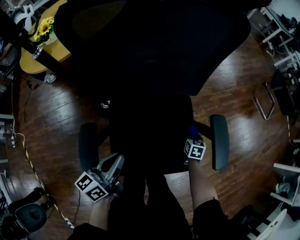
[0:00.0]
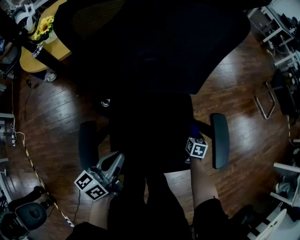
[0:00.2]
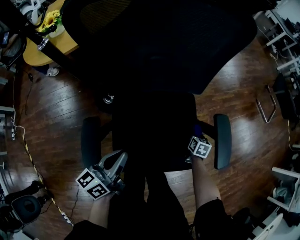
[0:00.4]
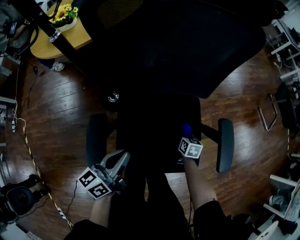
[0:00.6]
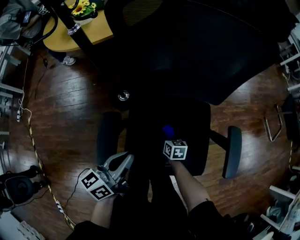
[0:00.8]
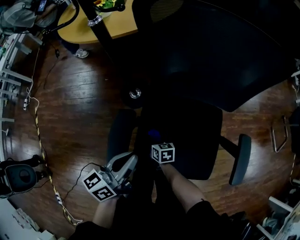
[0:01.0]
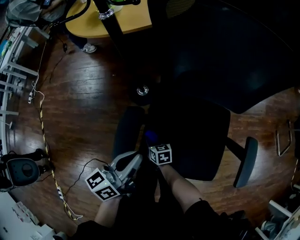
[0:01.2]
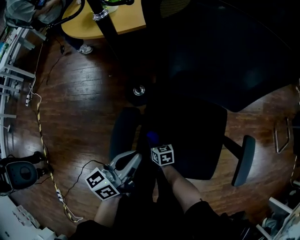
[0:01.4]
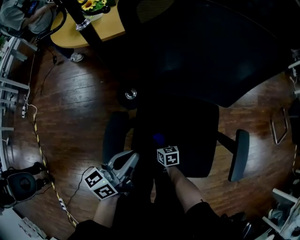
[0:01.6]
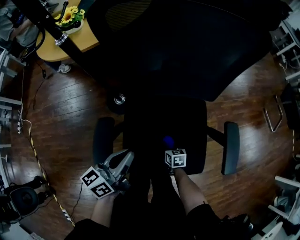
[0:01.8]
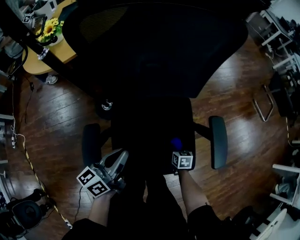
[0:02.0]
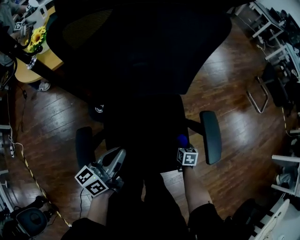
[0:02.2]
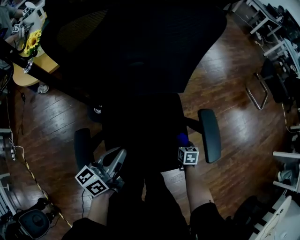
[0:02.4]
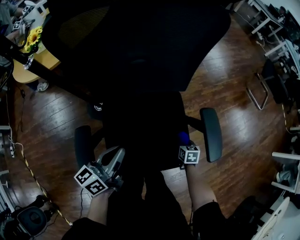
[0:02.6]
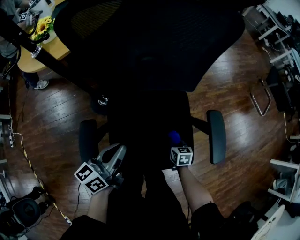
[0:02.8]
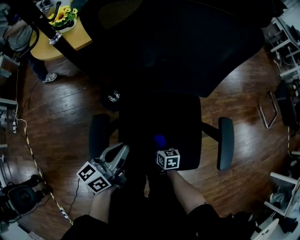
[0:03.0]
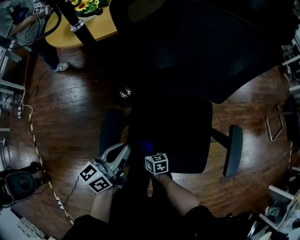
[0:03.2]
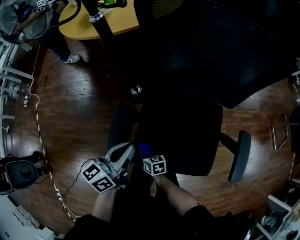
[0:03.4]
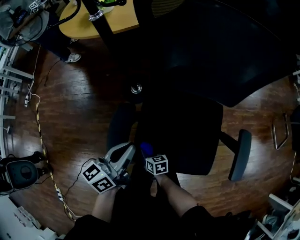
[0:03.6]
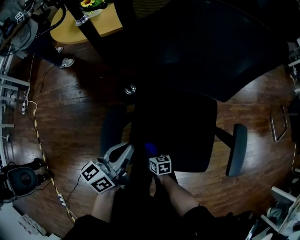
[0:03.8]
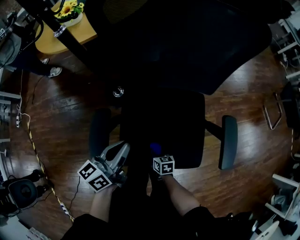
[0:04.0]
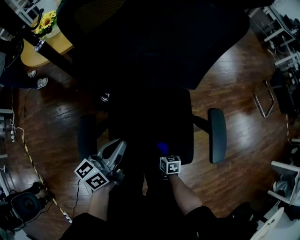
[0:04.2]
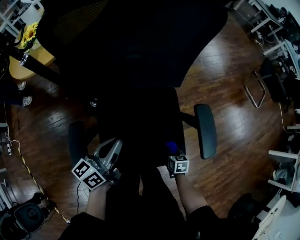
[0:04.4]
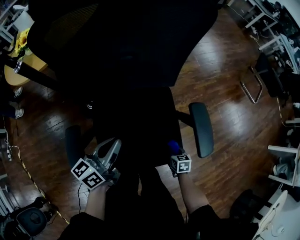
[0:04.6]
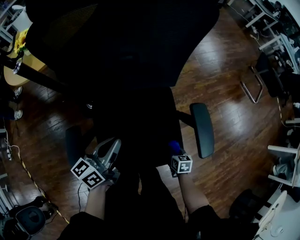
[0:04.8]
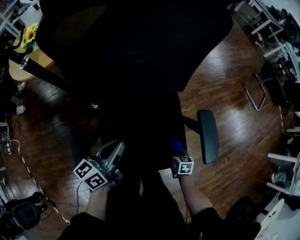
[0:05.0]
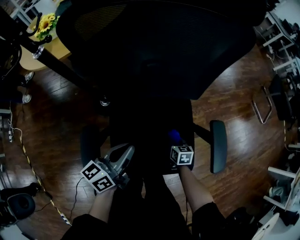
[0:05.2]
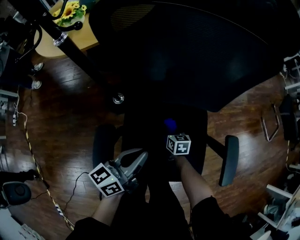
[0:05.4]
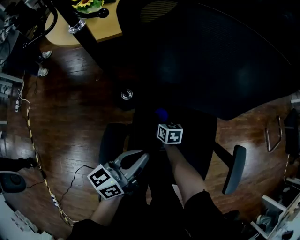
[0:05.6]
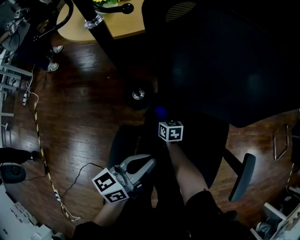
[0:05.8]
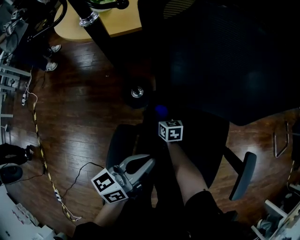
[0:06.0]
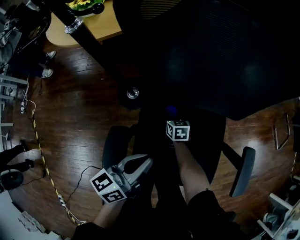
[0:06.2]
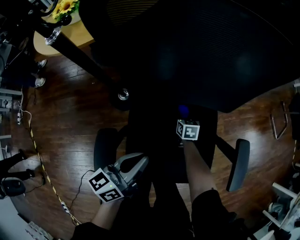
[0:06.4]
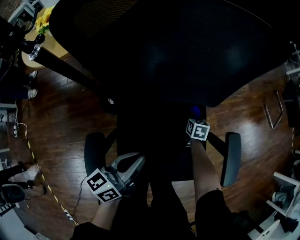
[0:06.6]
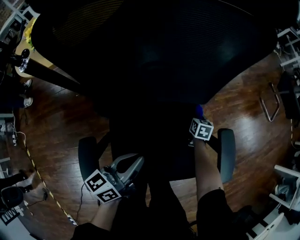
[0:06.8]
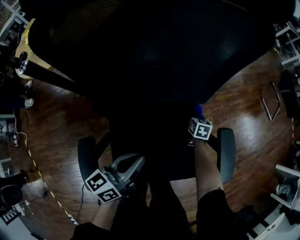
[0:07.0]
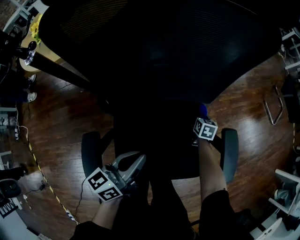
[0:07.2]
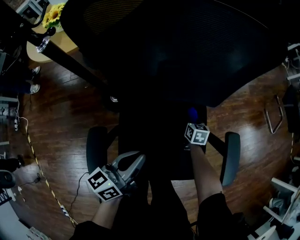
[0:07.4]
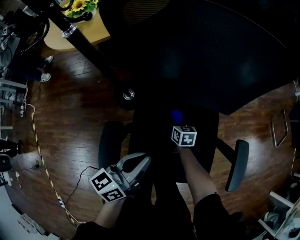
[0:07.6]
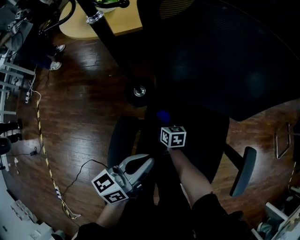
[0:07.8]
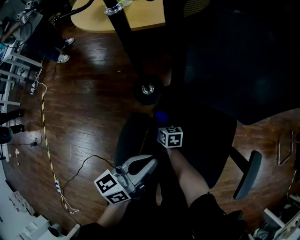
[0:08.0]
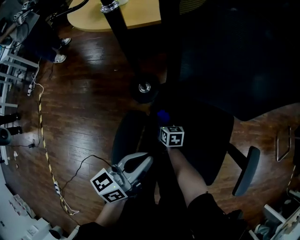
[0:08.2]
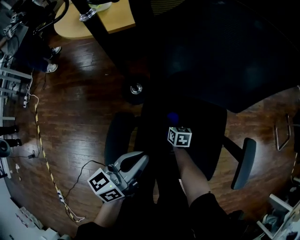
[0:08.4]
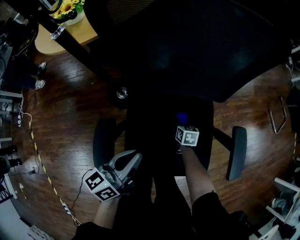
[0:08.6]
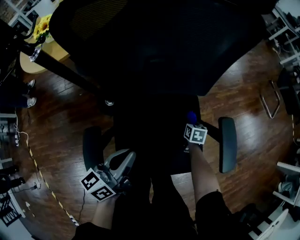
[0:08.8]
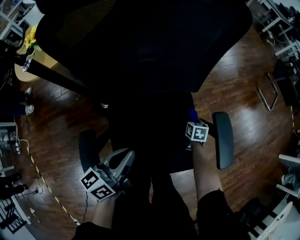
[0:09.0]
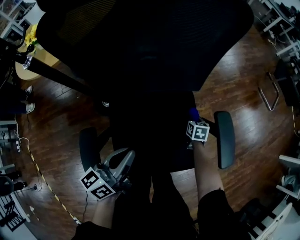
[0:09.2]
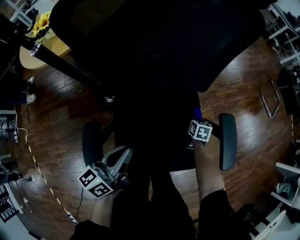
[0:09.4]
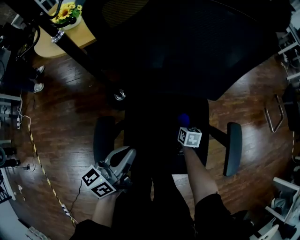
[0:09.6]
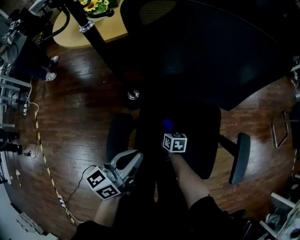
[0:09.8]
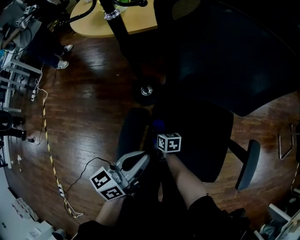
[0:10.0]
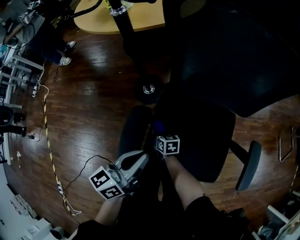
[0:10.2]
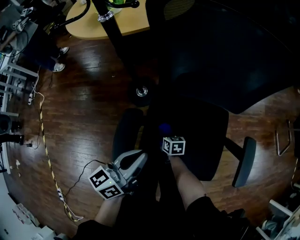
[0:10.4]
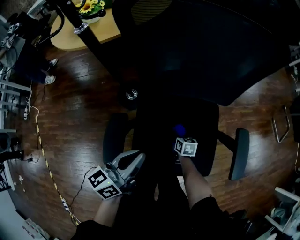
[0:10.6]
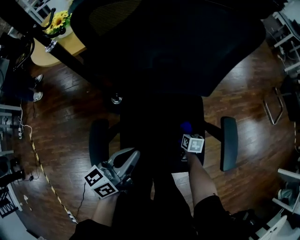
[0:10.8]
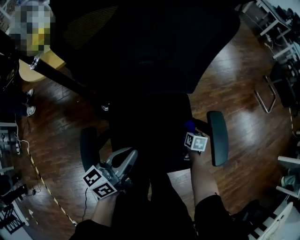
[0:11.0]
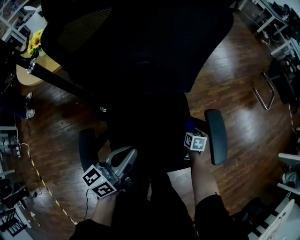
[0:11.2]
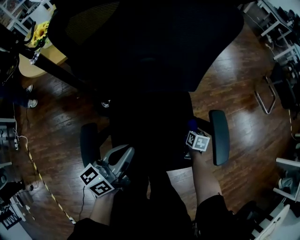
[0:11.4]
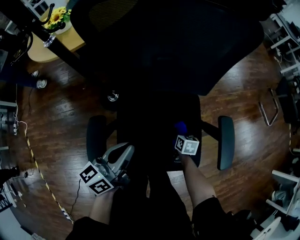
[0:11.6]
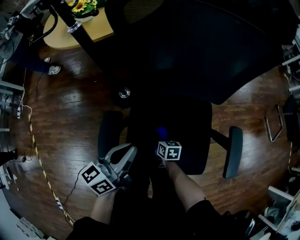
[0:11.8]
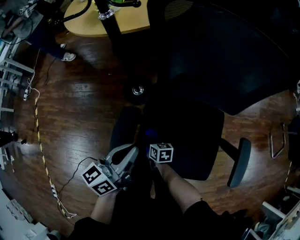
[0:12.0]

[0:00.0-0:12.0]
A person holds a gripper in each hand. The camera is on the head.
0:00.0 to 0:01.6: The right gripper moves roughly 35 cm, and rotates roughly 40 degrees.
0:03.0 to 0:04.4: The left gripper moves approximately 5 cm. Meanwhile the right gripper ends up approximately 15 cm from where it was.
0:04.4 to 0:06.0: The right gripper travels to the left and forward by approximately 40 cm, and swivels approximately 30 degrees, while the left gripper is displaced to the left by about 10 cm.
0:07.6 to 0:09.0: The right gripper shifts by some 25 cm, and rotates approximately 30 degrees.
0:09.0 to 0:10.4: The right gripper changes place by some 35 cm, and swivels roughly 30 degrees, while the left gripper changes place by about 10 cm.

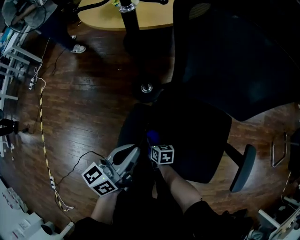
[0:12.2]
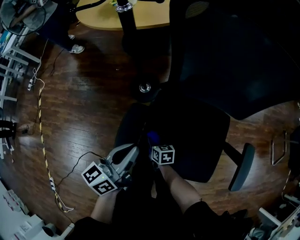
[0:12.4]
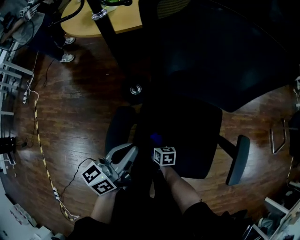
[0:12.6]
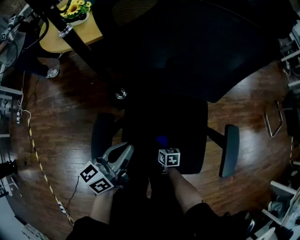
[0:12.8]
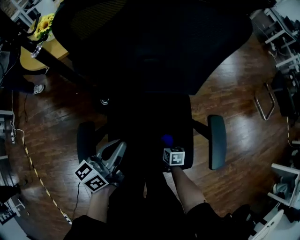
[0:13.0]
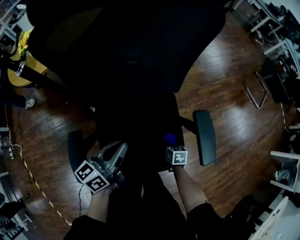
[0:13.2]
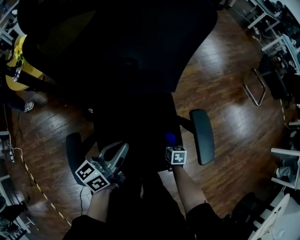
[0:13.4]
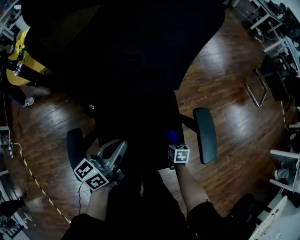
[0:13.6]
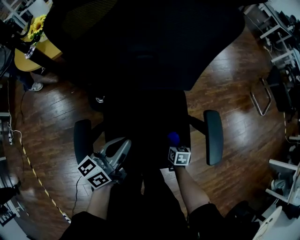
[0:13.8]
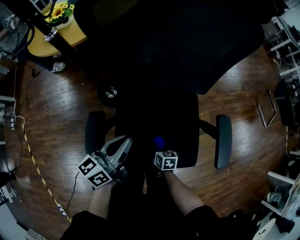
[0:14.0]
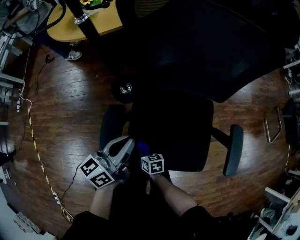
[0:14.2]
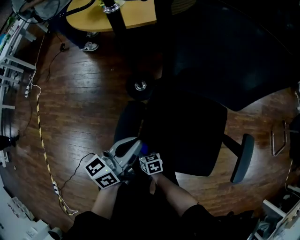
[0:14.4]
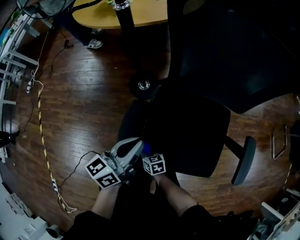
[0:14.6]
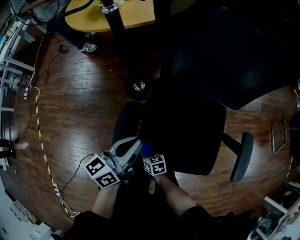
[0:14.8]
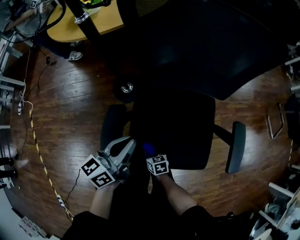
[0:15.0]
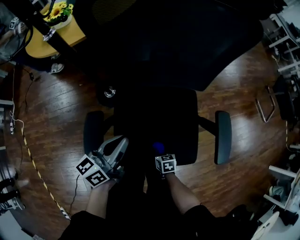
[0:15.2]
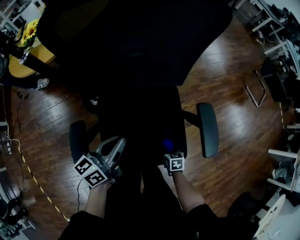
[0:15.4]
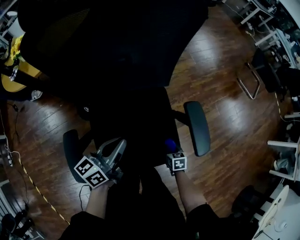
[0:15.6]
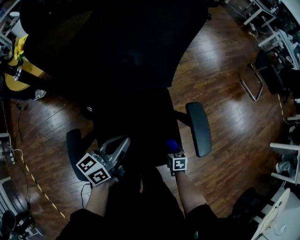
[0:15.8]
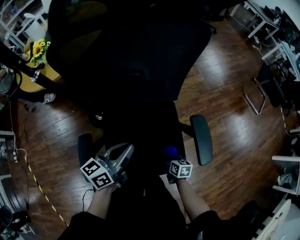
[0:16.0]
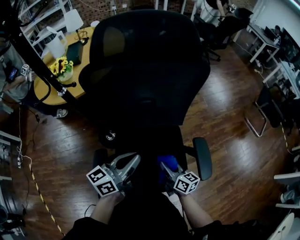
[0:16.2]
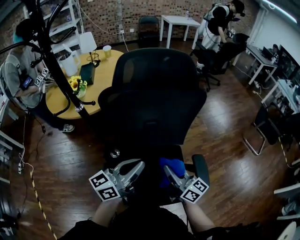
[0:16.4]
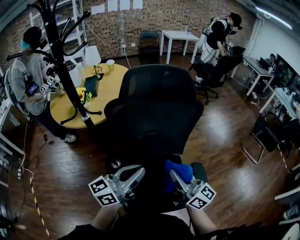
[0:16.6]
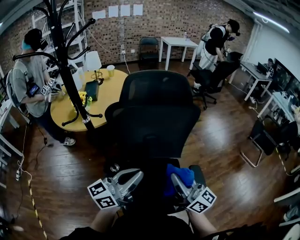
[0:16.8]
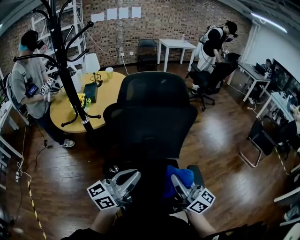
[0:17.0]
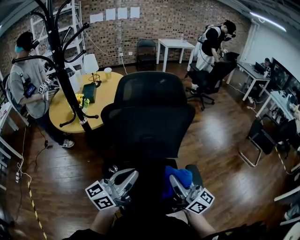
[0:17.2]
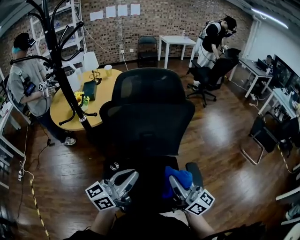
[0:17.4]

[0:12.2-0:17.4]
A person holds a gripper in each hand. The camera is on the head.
0:12.2 to 0:14.0: The right gripper turns by approximately 20 degrees.
0:14.0 to 0:15.6: The right gripper changes place by about 20 cm. Meanwhile the left gripper moves approximately 10 cm.
0:15.6 to 0:17.4: The left gripper is displaced upward by about 30 cm, and changes its angle by some 20 degrees, while the right gripper goes roughly 60 cm upward, and points its fingers approximately 80 degrees further upward.

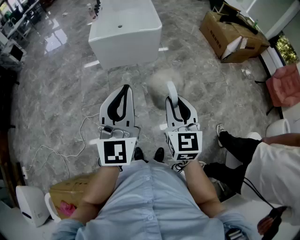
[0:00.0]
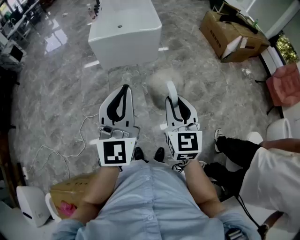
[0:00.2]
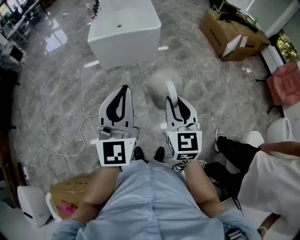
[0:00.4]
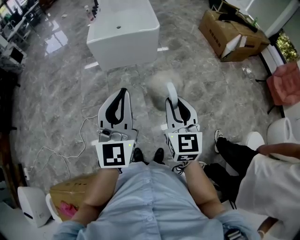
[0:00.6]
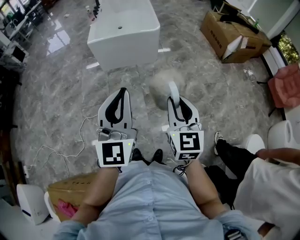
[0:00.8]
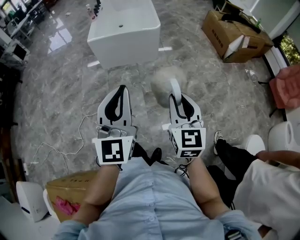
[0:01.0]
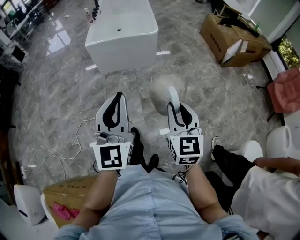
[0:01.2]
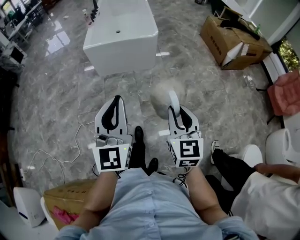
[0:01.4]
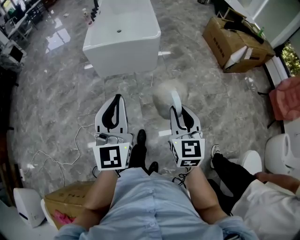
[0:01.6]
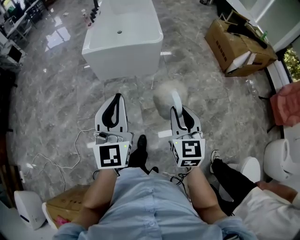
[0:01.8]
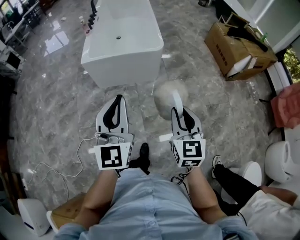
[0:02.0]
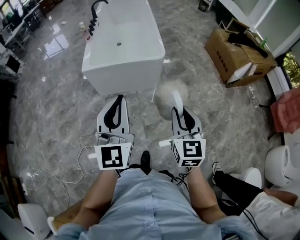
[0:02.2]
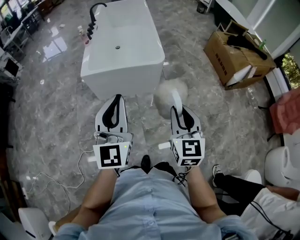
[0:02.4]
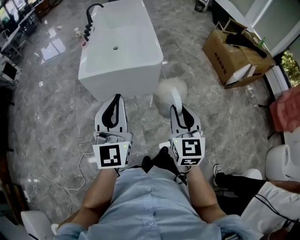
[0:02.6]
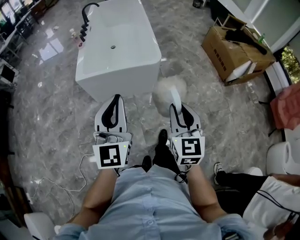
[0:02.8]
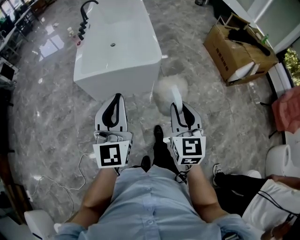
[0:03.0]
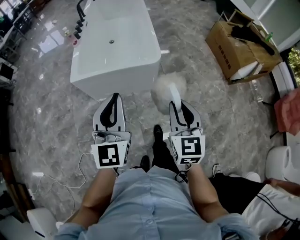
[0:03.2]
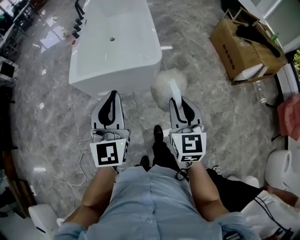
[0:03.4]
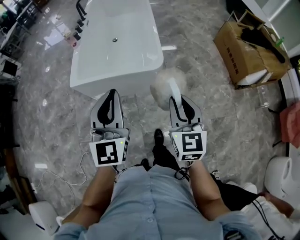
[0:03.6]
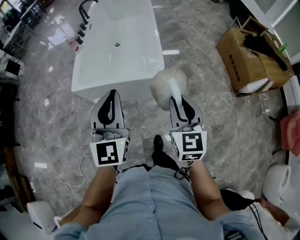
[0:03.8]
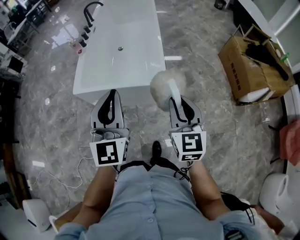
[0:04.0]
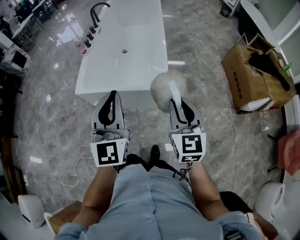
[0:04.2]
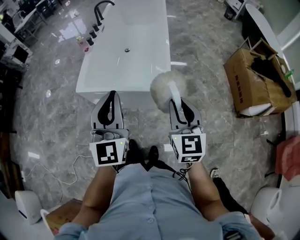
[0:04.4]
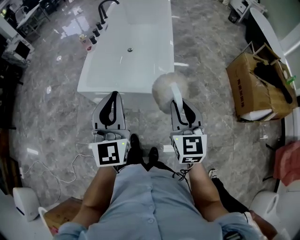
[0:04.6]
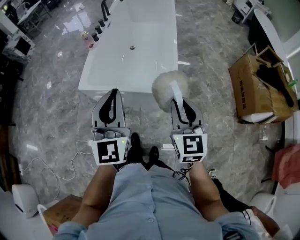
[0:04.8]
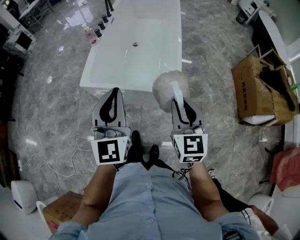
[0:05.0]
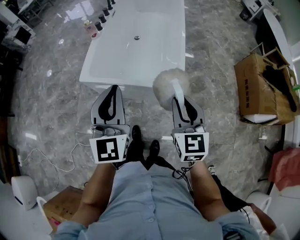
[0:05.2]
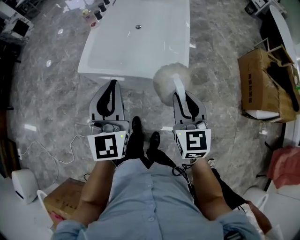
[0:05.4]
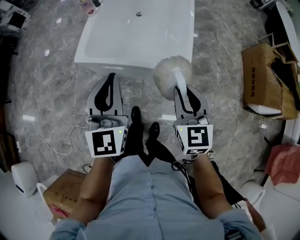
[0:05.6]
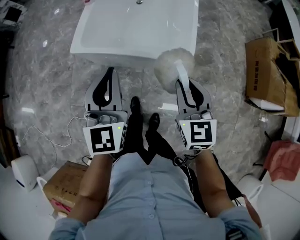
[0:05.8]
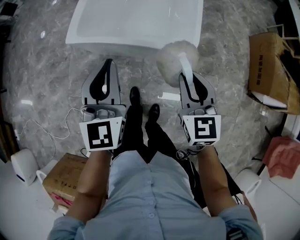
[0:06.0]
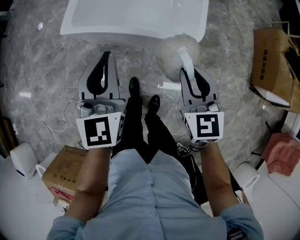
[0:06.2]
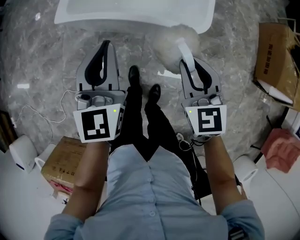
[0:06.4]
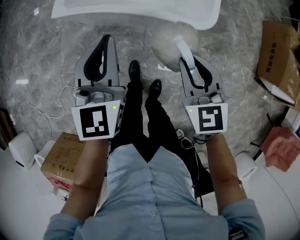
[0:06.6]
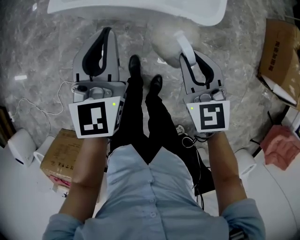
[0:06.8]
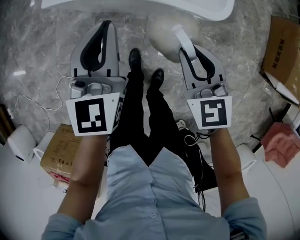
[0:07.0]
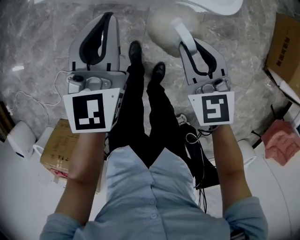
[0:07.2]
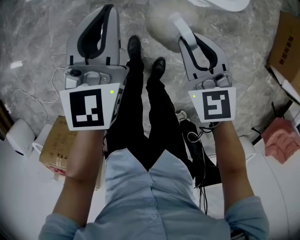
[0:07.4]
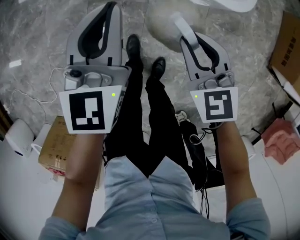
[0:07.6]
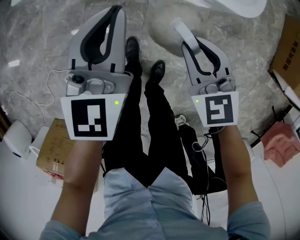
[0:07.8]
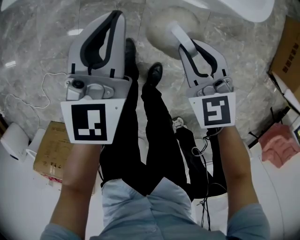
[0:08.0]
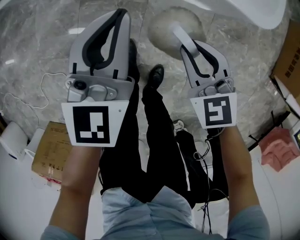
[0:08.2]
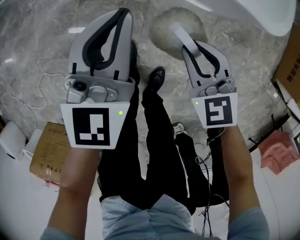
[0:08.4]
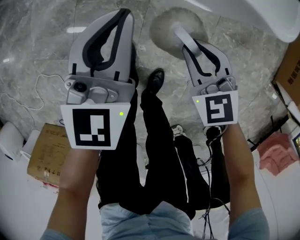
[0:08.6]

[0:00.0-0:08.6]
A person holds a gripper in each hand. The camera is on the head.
0:00.0 to 0:01.4: The left gripper shifts approximately 10 cm forward and to the right; the right gripper heads to the right and forward, covering some 10 cm.
0:01.4 to 0:02.8: The grippers both shift forward by about 35 cm.
0:02.8 to 0:04.4: Both grippers move forward, about 30 cm.
0:04.4 to 0:05.8: Both grippers move downward, forward and to the left, some 15 cm.
0:05.8 to 0:07.2: The two grippers go roughly 20 cm downward.
0:07.2 to 0:08.6: Both grippers move downward, approximately 25 cm.
